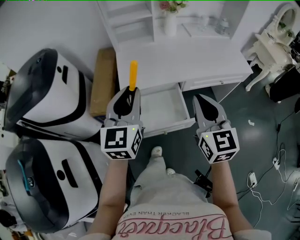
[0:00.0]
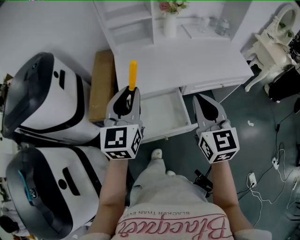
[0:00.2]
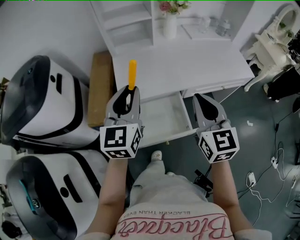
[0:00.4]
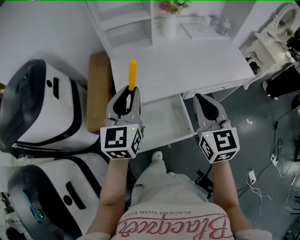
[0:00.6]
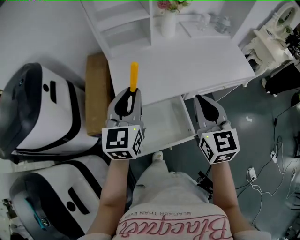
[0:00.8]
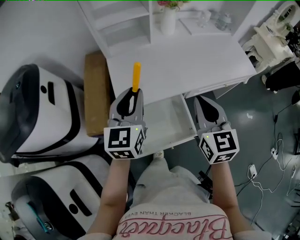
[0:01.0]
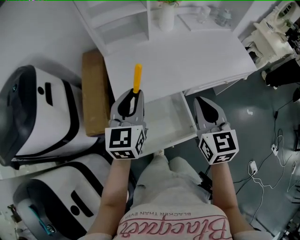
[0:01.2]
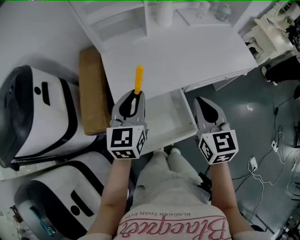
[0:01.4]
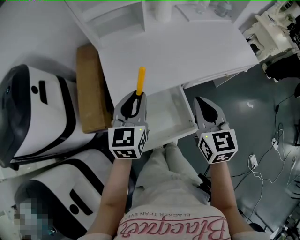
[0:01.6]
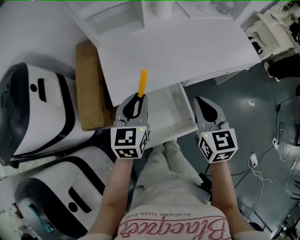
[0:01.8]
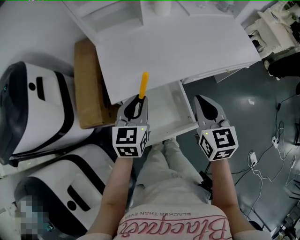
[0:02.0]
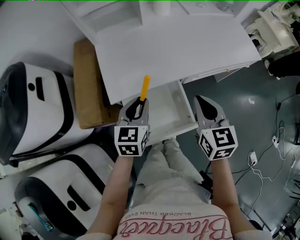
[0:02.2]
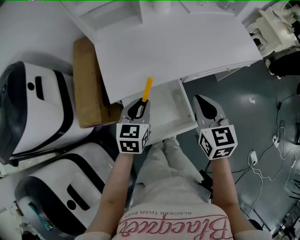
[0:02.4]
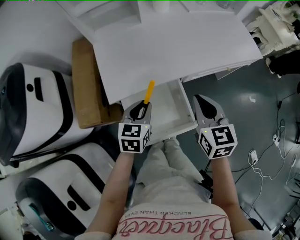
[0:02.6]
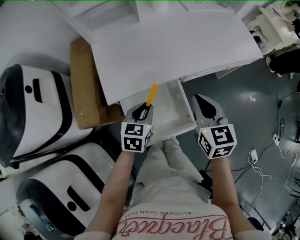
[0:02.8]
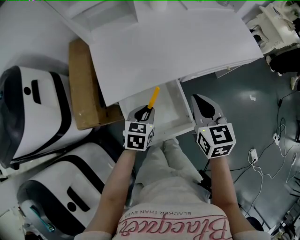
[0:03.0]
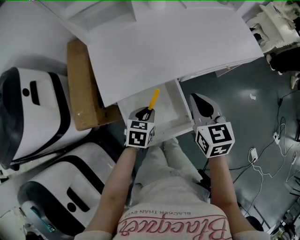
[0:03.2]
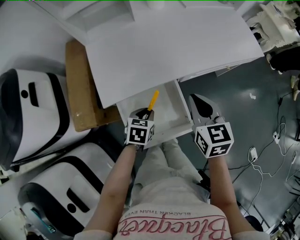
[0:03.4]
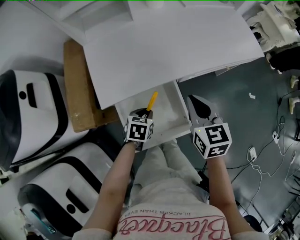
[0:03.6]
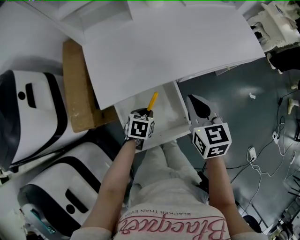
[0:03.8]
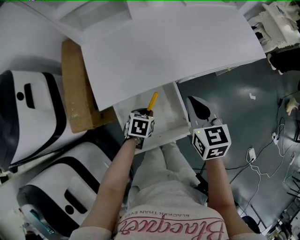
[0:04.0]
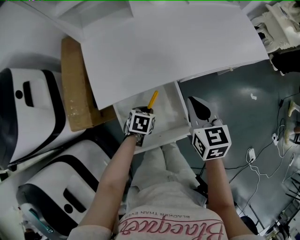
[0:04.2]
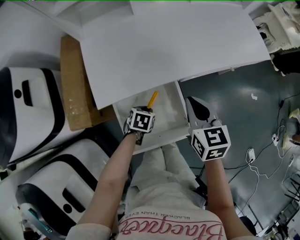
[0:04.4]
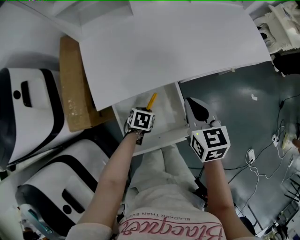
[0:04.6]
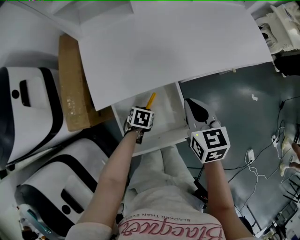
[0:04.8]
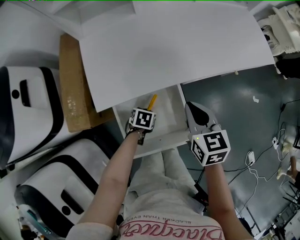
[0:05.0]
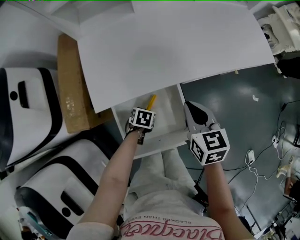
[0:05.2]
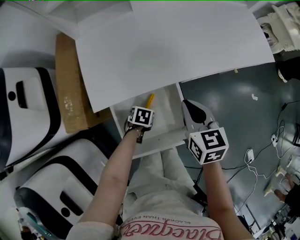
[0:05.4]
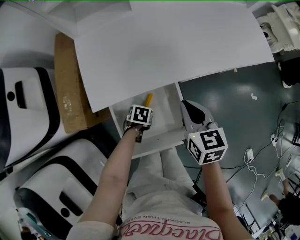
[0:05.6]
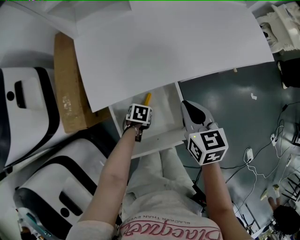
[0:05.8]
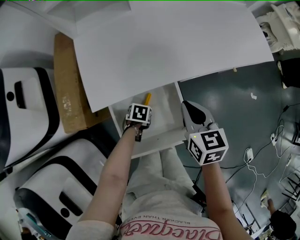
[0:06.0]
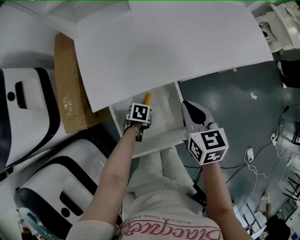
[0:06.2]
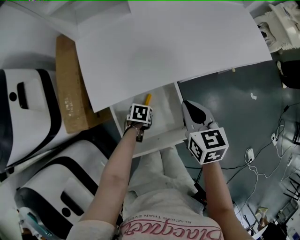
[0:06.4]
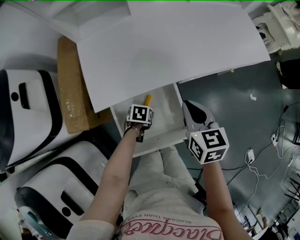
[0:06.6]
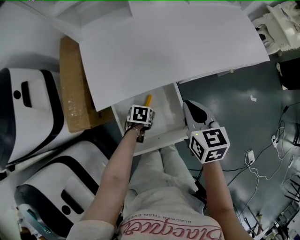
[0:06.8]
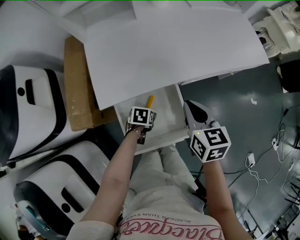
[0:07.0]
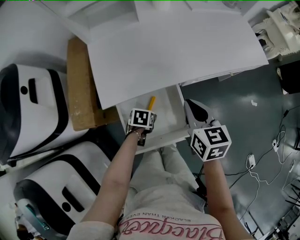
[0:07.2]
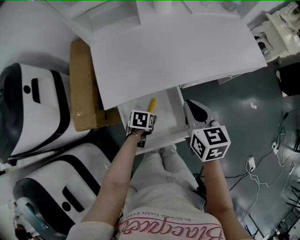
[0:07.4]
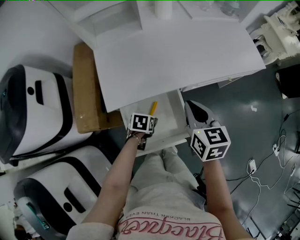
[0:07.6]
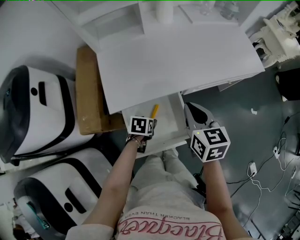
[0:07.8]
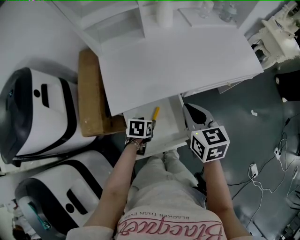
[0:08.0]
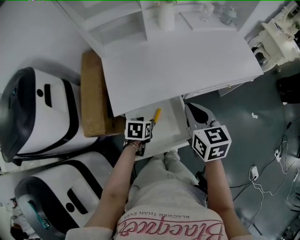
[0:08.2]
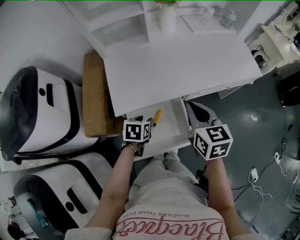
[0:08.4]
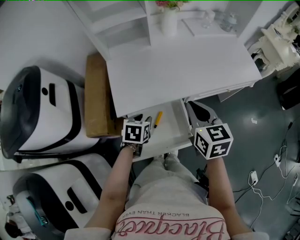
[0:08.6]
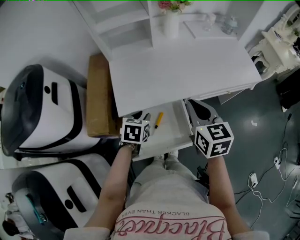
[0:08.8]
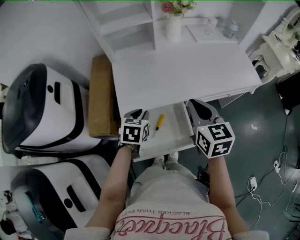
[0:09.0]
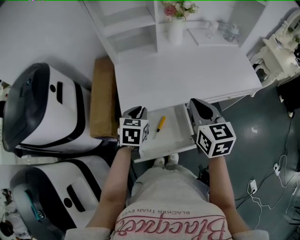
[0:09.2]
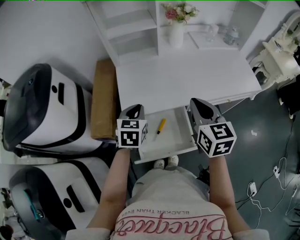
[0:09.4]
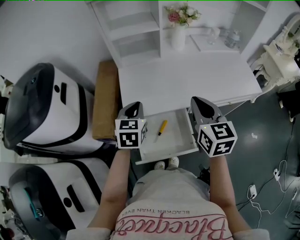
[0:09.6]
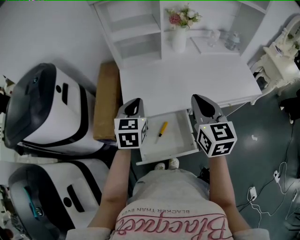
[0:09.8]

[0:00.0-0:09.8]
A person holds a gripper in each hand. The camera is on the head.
0:00.0 to 0:01.4: Both grippers travel together forward and downward, about 15 cm.
0:01.4 to 0:02.8: The left gripper travels downward by roughly 15 cm, and rotates roughly 30 degrees. Meanwhile the right gripper heads downward, covering about 5 cm.
0:02.8 to 0:04.2: The right gripper moves roughly 5 cm. The left gripper shifts roughly 15 cm downward, and rotates approximately 30 degrees.
0:04.2 to 0:05.6: The left gripper shifts roughly 10 cm downward.
0:05.6 to 0:07.0: The left gripper opens up.
0:07.0 to 0:08.4: The left gripper is displaced upward by about 15 cm, and closes up. Meanwhile the right gripper shifts some 10 cm upward.
0:08.4 to 0:09.8: The left gripper is displaced upward by approximately 20 cm, tilts its fingers roughly 30 degrees upward, and closes up. Meanwhile the right gripper goes about 10 cm upward.

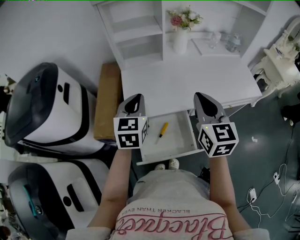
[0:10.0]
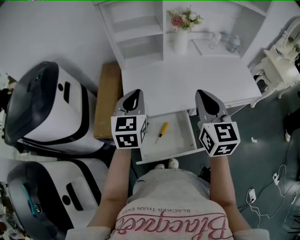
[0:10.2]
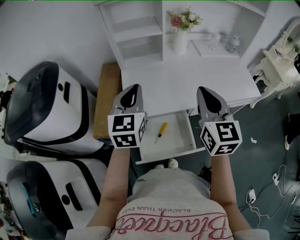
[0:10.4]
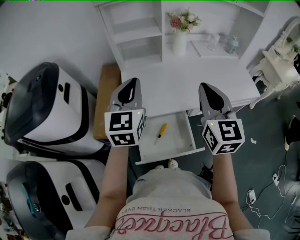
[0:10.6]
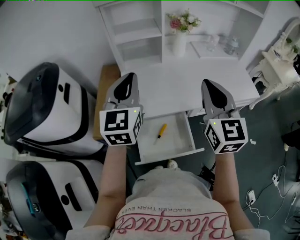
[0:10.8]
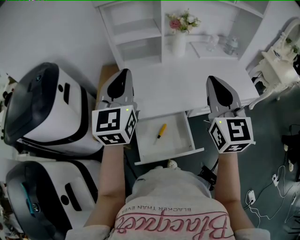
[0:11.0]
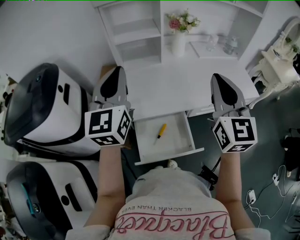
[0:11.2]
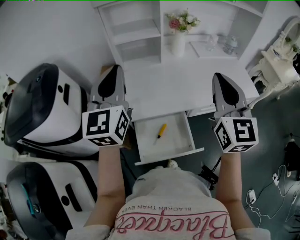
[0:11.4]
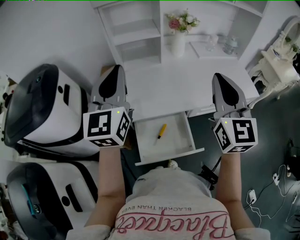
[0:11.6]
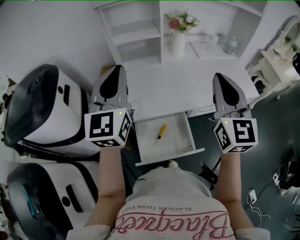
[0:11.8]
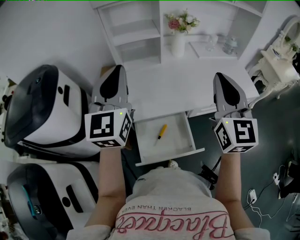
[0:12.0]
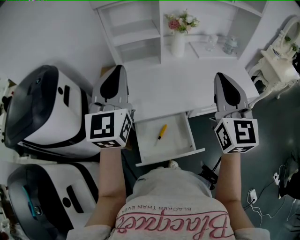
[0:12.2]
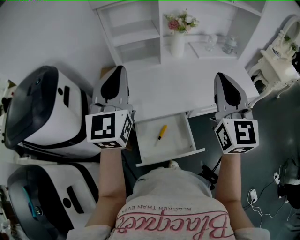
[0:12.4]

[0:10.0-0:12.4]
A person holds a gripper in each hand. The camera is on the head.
0:10.0 to 0:11.2: The right gripper travels upward by some 10 cm; the left gripper moves upward, some 15 cm, and turns by about 30 degrees.
0:11.2 to 0:12.4: The grippers move only a little.

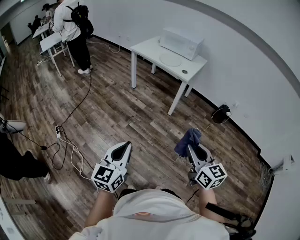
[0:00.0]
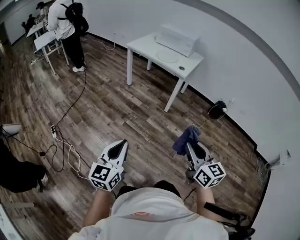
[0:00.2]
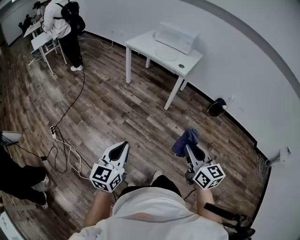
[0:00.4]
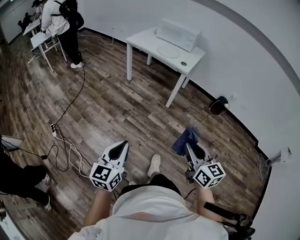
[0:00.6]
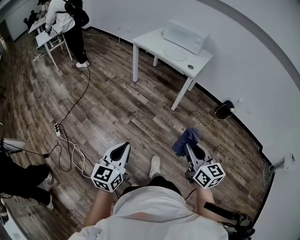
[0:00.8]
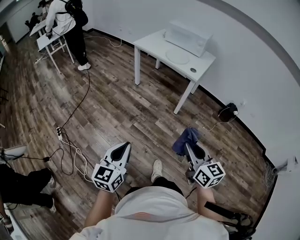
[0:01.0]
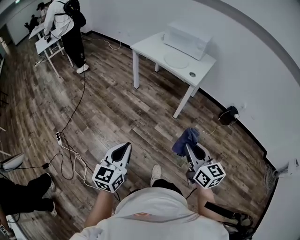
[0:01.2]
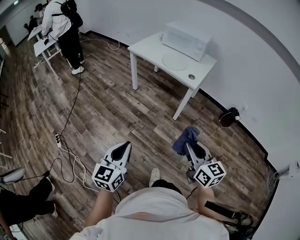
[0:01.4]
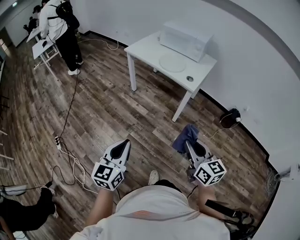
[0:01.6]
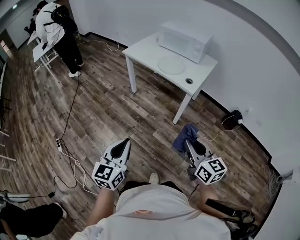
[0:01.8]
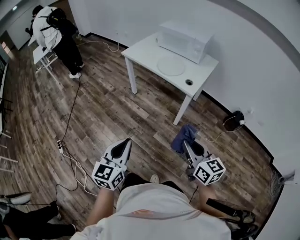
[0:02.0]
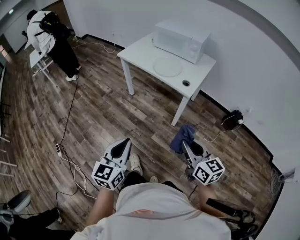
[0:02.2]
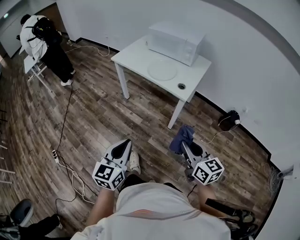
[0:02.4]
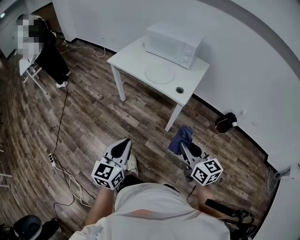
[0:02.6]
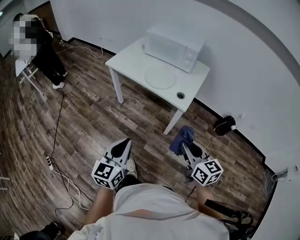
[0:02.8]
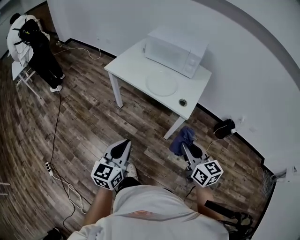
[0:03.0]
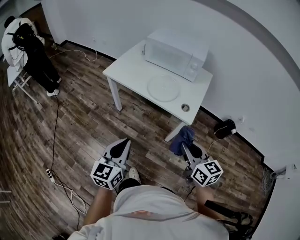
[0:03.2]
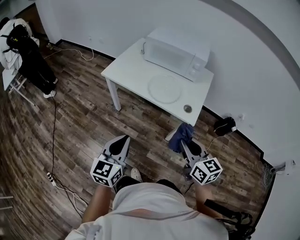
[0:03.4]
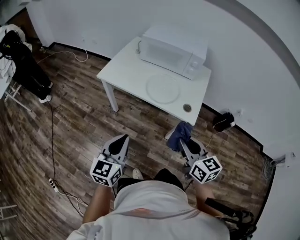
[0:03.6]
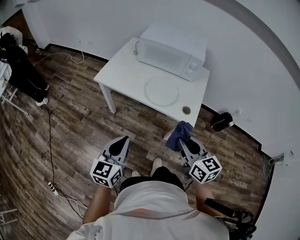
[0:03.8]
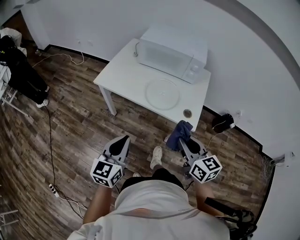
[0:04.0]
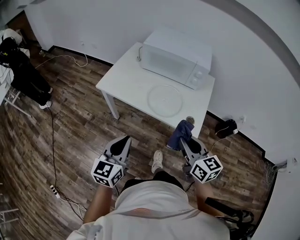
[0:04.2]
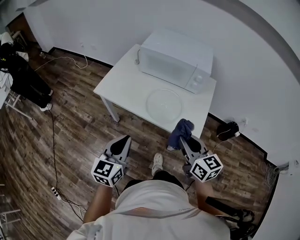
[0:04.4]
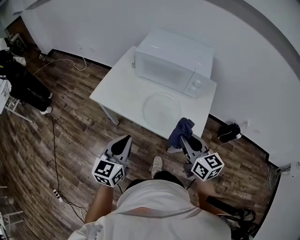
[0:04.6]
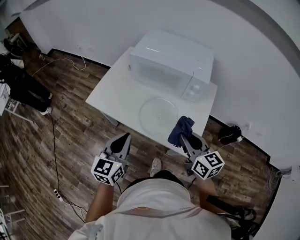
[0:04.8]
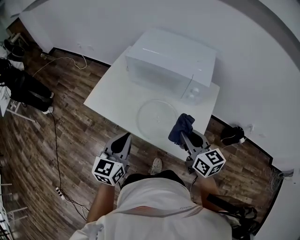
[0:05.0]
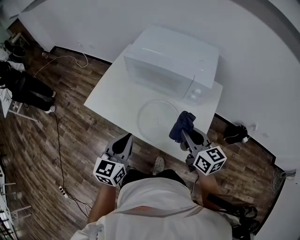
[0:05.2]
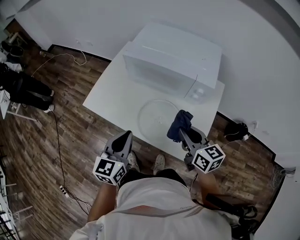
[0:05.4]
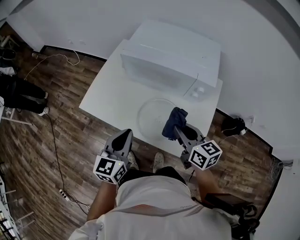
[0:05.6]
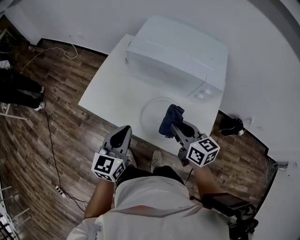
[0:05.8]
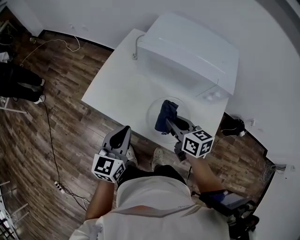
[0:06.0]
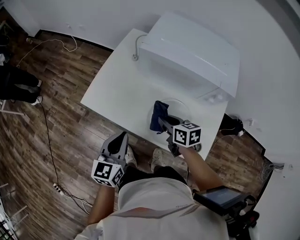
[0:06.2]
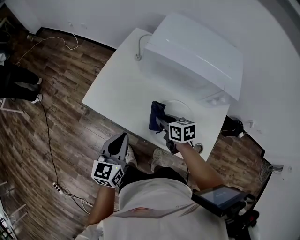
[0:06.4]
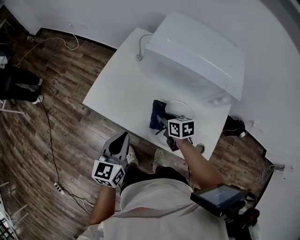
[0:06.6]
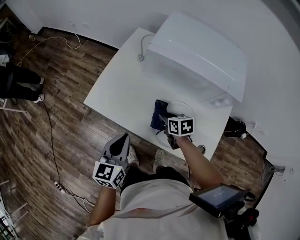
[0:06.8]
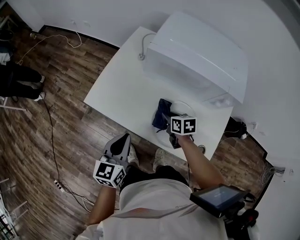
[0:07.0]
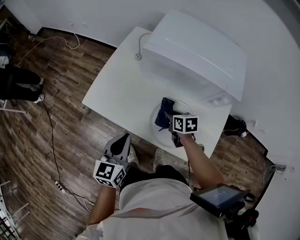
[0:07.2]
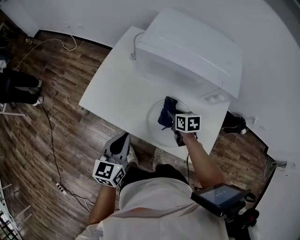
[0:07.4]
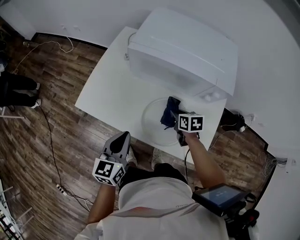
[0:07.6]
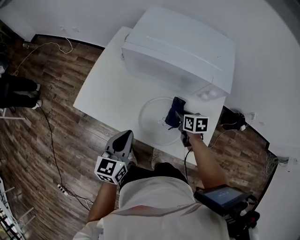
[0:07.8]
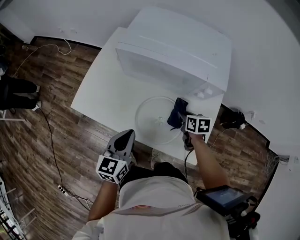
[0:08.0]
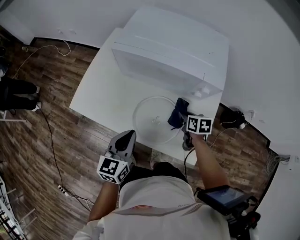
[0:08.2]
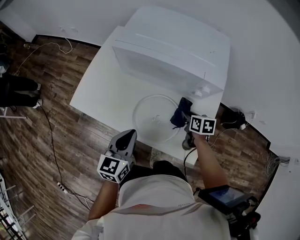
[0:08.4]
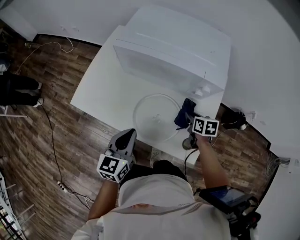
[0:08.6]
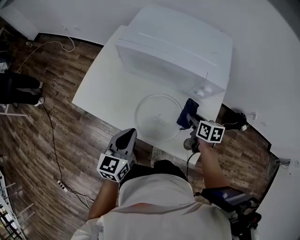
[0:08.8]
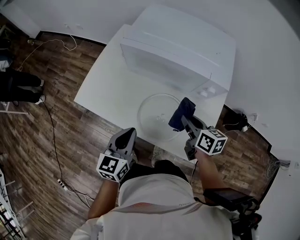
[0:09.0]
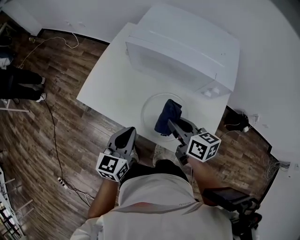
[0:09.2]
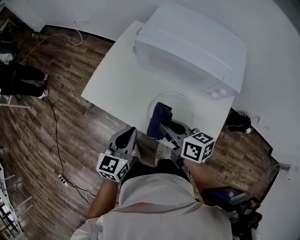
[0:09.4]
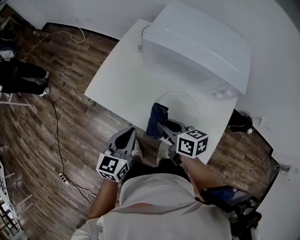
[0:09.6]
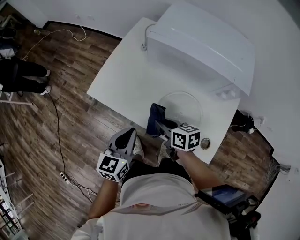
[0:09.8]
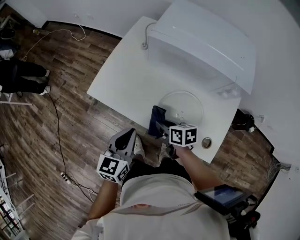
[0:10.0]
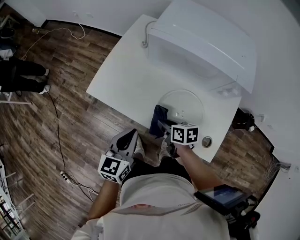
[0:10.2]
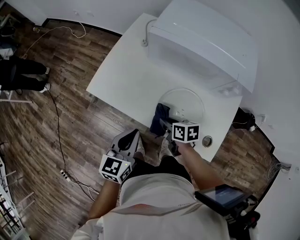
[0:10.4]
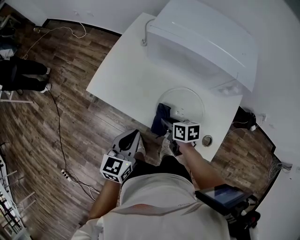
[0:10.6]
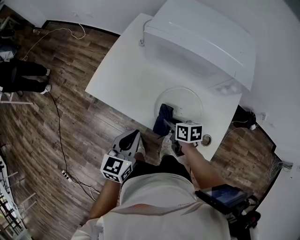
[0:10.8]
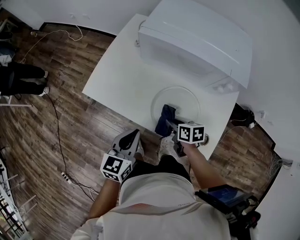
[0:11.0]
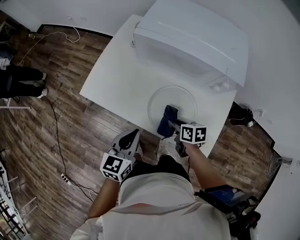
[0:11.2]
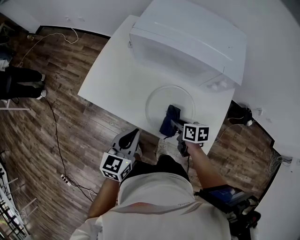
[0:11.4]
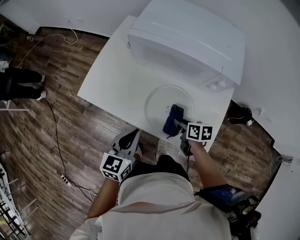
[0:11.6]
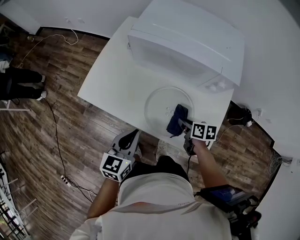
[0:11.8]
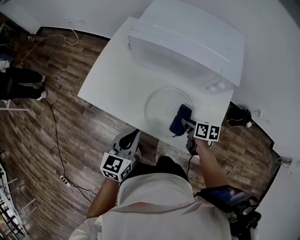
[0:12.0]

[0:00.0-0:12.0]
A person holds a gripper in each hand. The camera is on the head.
0:00.0 to 0:01.6: Both grippers move forward, some 30 cm.
0:01.6 to 0:03.0: Both grippers travel together forward, approximately 25 cm.
0:03.0 to 0:04.4: Both grippers move forward, roughly 25 cm.
0:04.4 to 0:06.0: The right gripper goes some 30 cm forward and downward, and turns by roughly 20 degrees; the left gripper goes approximately 25 cm forward.
0:06.0 to 0:07.6: The right gripper moves downward and to the right, some 15 cm, and rotates approximately 20 degrees.
0:07.6 to 0:09.0: The left gripper goes some 5 cm to the right, while the right gripper moves upward, about 10 cm, and turns by approximately 20 degrees.
0:09.0 to 0:10.4: The left gripper shifts roughly 10 cm to the left, while the right gripper heads to the left and downward, covering roughly 20 cm, and turns by about 20 degrees.
0:10.4 to 0:12.0: The left gripper is displaced to the right by some 5 cm. The right gripper heads to the right, covering roughly 15 cm.
